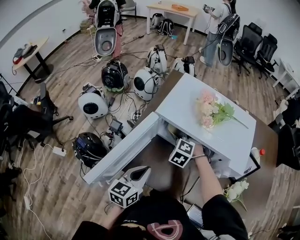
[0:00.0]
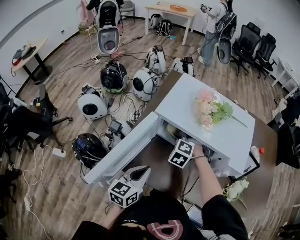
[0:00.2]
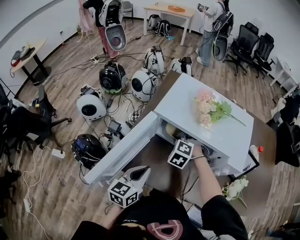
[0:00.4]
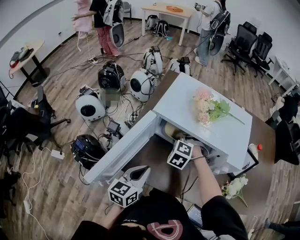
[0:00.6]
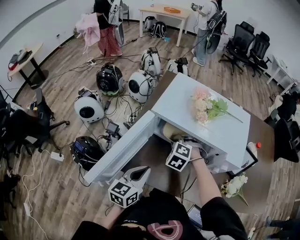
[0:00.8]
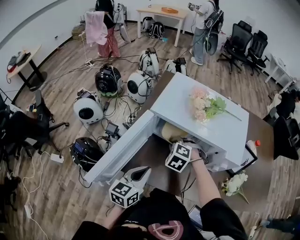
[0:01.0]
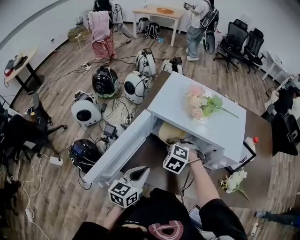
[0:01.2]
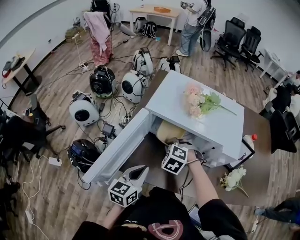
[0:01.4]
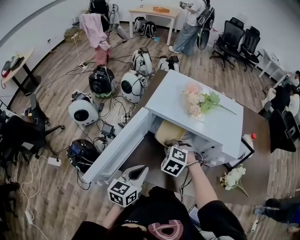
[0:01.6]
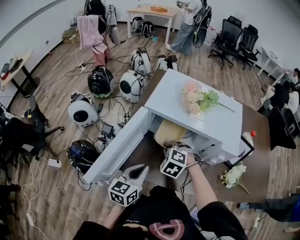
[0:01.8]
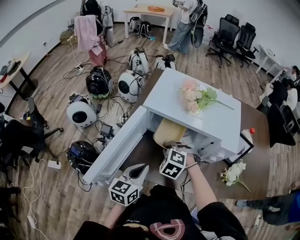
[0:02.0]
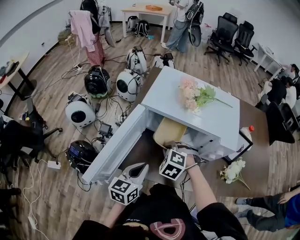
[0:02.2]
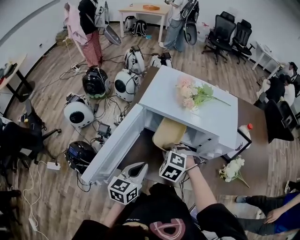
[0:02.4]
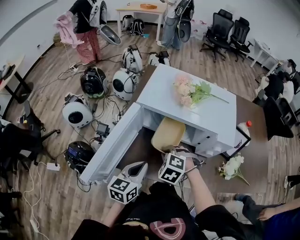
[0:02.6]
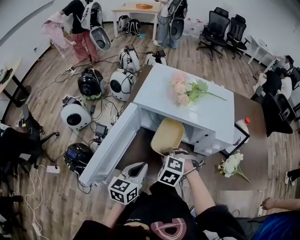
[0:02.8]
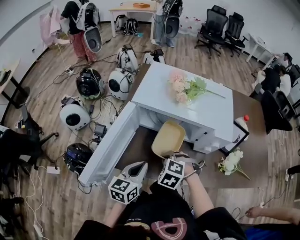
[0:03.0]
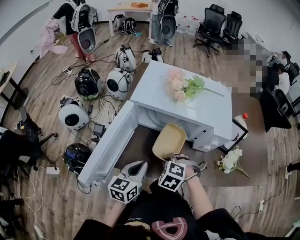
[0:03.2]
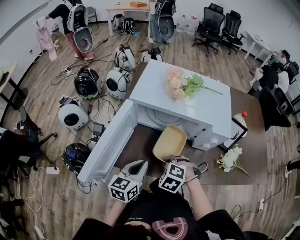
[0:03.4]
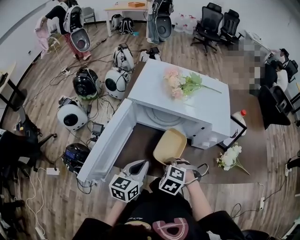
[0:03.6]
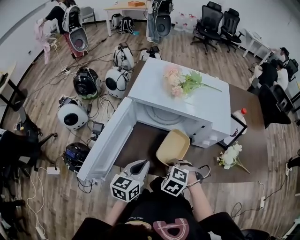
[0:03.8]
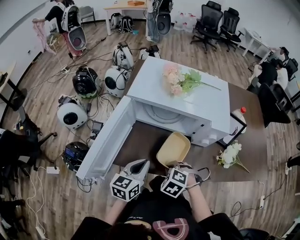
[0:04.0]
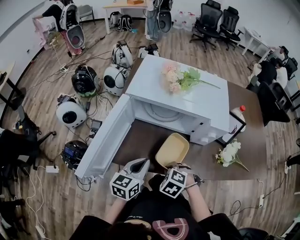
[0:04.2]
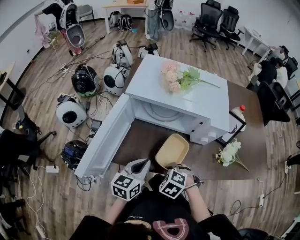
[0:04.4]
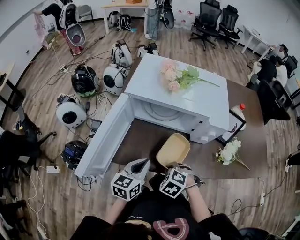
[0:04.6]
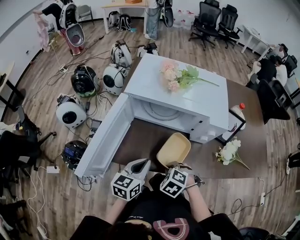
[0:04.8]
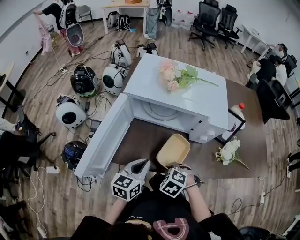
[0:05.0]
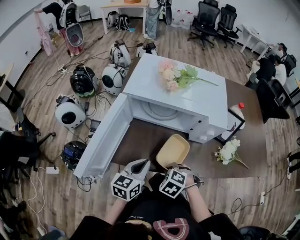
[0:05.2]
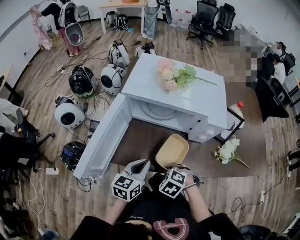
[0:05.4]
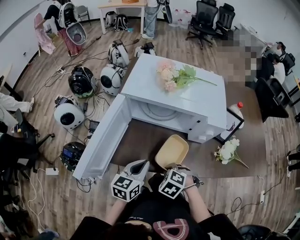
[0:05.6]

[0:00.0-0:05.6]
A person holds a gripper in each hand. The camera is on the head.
0:00.0 to 0:01.4: The right gripper goes about 5 cm backward.
0:01.4 to 0:02.8: The right gripper shifts some 10 cm backward.
0:02.8 to 0:04.2: The right gripper travels backward and to the right by some 10 cm.
0:04.2 to 0:05.6: There are only small adjustments of the grippers.

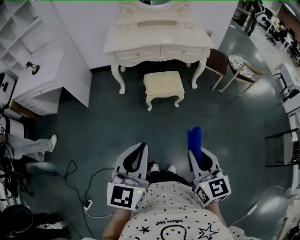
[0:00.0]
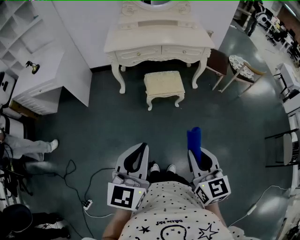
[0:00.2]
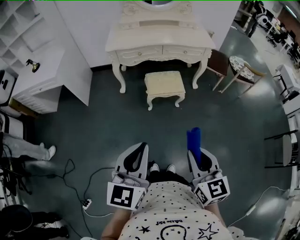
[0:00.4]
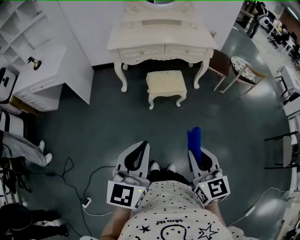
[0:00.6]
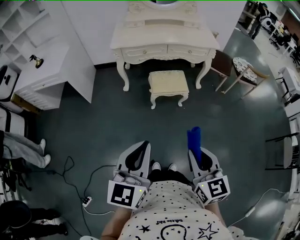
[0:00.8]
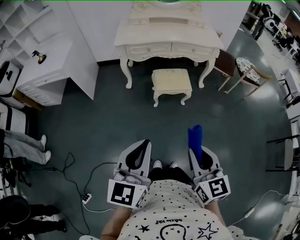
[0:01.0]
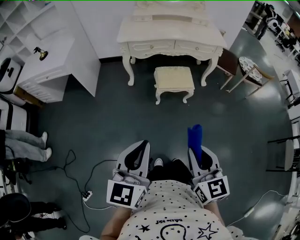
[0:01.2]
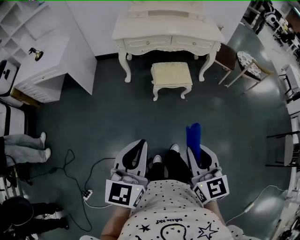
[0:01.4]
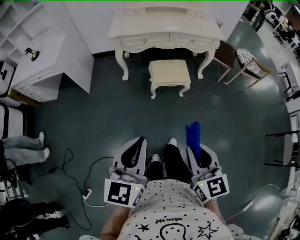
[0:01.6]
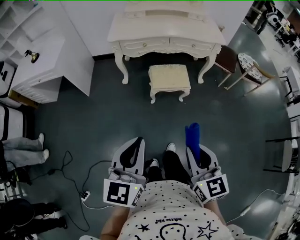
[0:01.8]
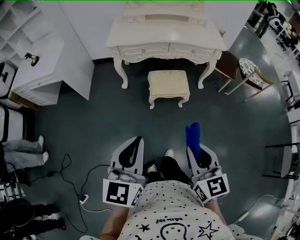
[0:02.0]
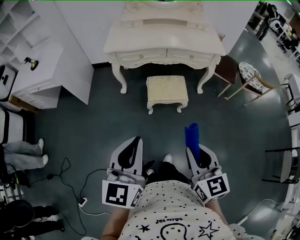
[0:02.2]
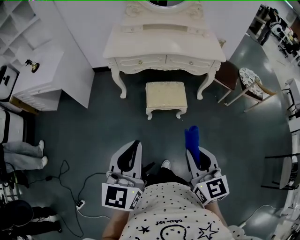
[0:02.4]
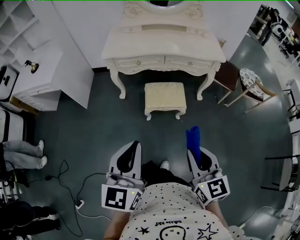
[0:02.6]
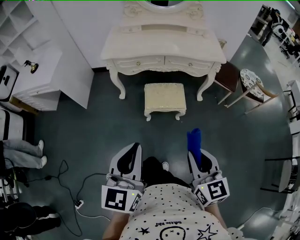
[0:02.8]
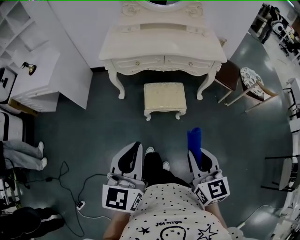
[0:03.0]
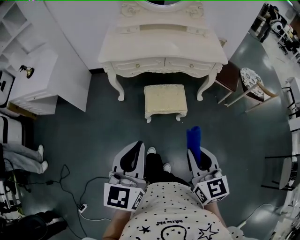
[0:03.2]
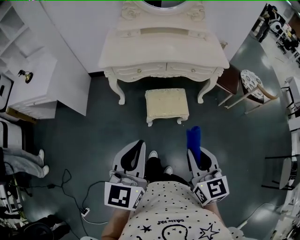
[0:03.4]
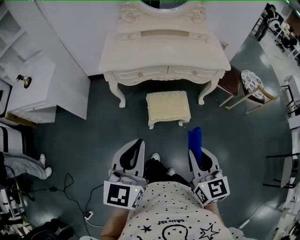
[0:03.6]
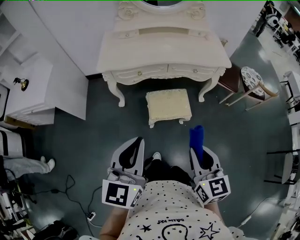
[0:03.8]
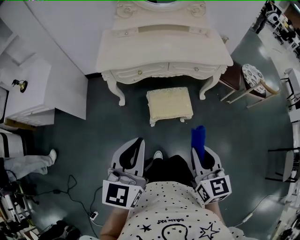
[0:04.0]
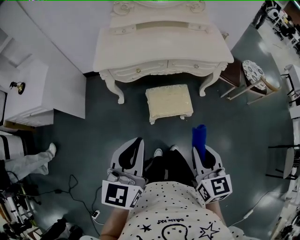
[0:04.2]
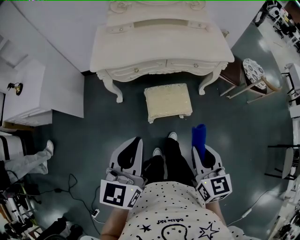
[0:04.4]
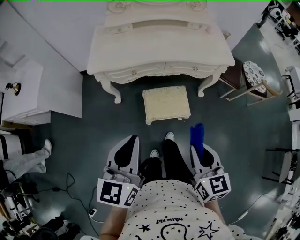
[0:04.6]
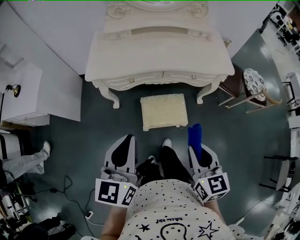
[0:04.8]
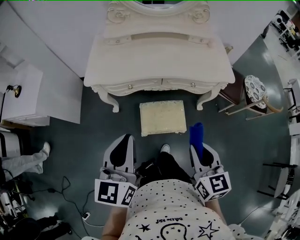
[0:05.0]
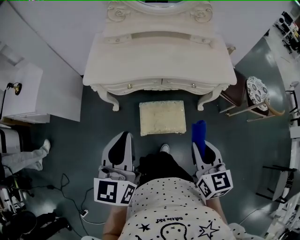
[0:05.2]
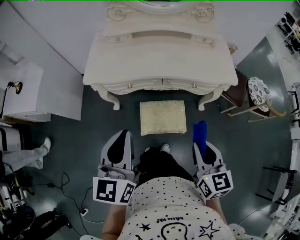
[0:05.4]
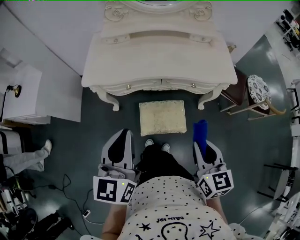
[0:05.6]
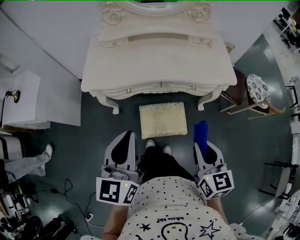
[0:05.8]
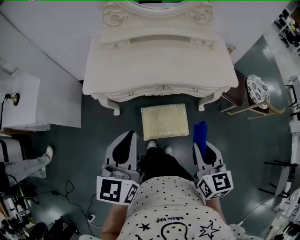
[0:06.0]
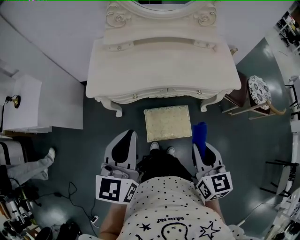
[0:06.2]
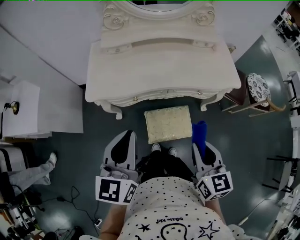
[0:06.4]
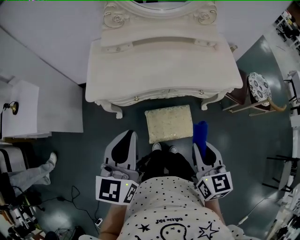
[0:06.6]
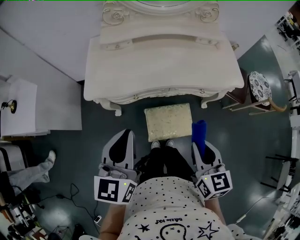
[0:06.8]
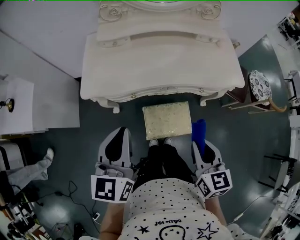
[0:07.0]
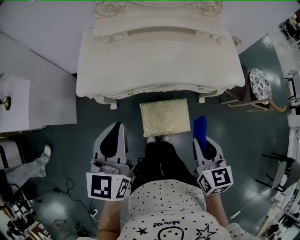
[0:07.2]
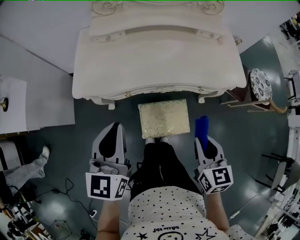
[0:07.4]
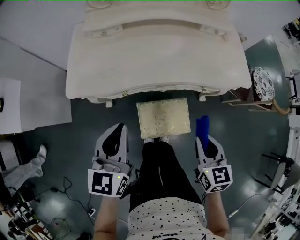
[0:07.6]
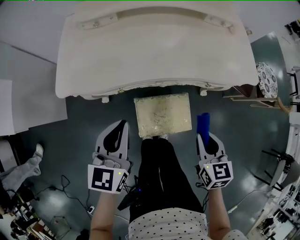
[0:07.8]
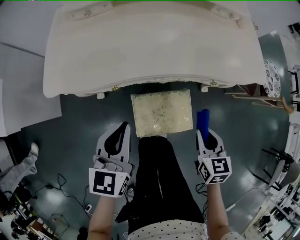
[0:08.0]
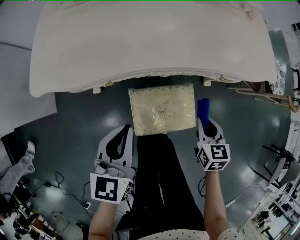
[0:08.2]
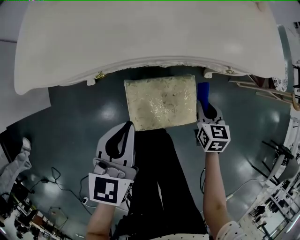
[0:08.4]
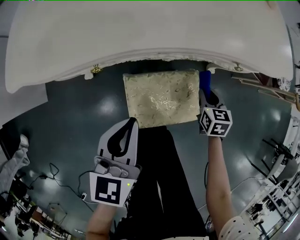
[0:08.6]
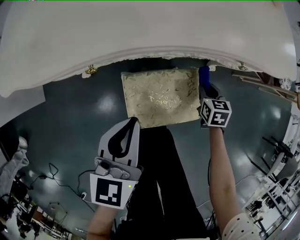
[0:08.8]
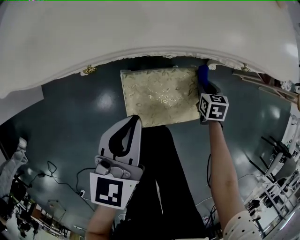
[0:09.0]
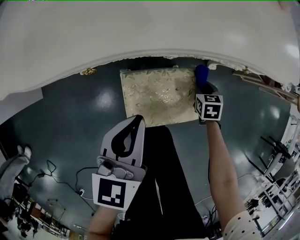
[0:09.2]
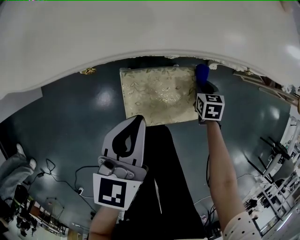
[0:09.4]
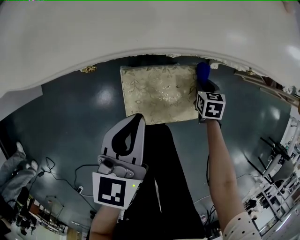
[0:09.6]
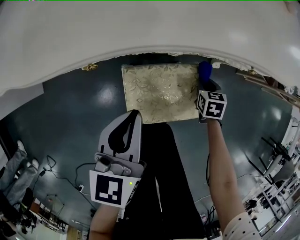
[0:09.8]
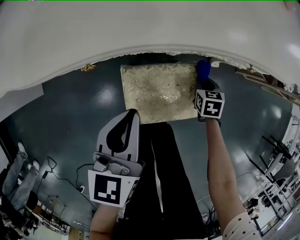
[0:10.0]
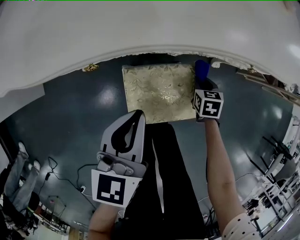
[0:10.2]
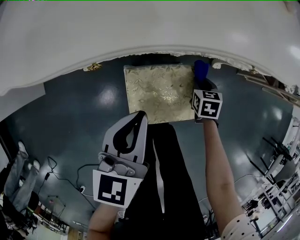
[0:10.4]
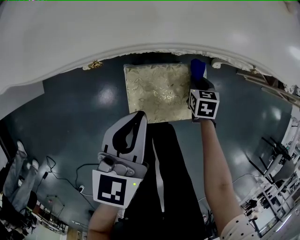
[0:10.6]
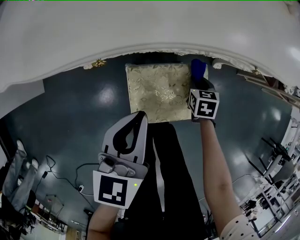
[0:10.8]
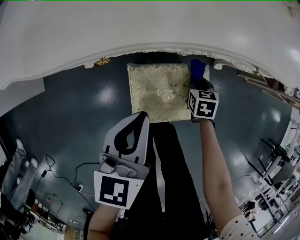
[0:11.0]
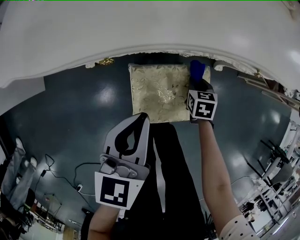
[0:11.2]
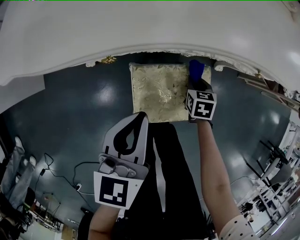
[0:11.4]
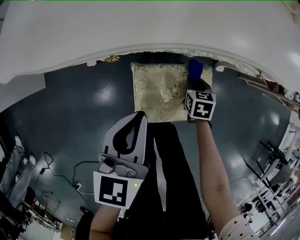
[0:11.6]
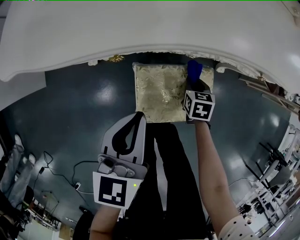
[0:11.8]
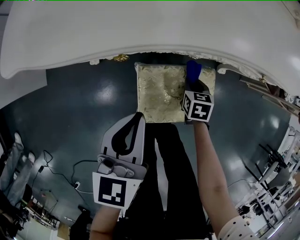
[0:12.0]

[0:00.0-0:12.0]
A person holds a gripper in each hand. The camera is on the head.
0:01.6 to 0:03.0: The grippers both shift forward and to the right by about 20 cm.
0:03.0 to 0:04.4: The two grippers go about 15 cm forward.
0:04.4 to 0:06.0: Both grippers travel together forward, some 20 cm.
0:06.0 to 0:07.6: The grippers both shift downward and forward by some 15 cm.
0:07.6 to 0:09.0: The right gripper shifts about 40 cm downward, and changes its angle by about 30 degrees. Meanwhile the left gripper goes about 25 cm downward.
0:09.0 to 0:10.4: The grippers move only a little.
0:10.4 to 0:12.0: The right gripper moves to the left, approximately 10 cm, while the left gripper goes about 5 cm to the left.

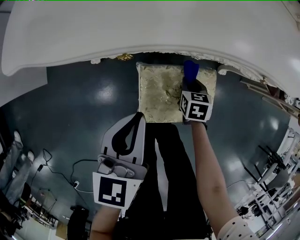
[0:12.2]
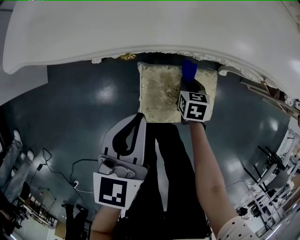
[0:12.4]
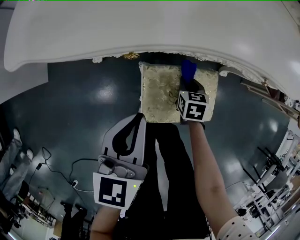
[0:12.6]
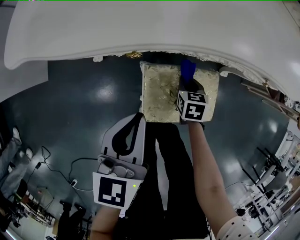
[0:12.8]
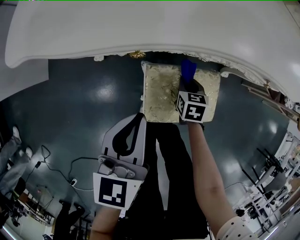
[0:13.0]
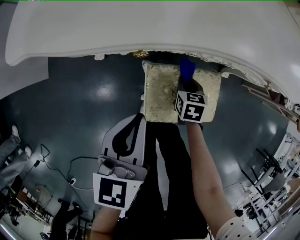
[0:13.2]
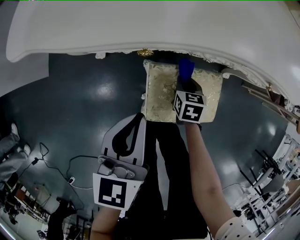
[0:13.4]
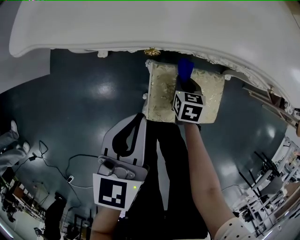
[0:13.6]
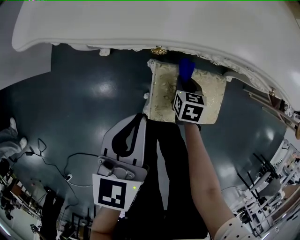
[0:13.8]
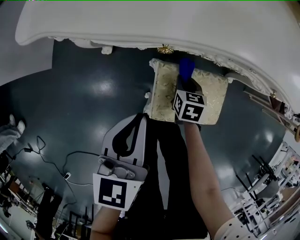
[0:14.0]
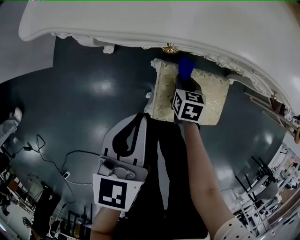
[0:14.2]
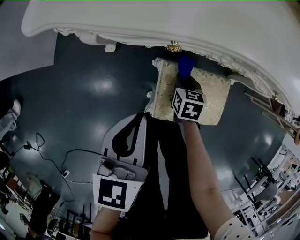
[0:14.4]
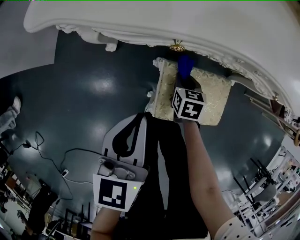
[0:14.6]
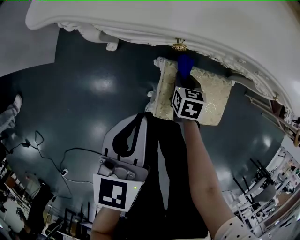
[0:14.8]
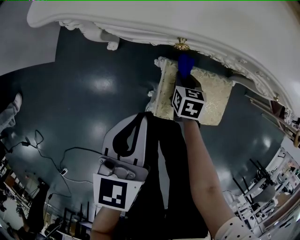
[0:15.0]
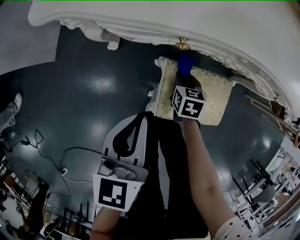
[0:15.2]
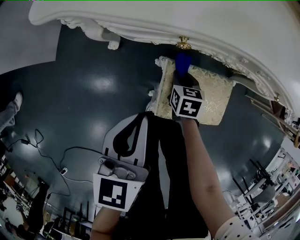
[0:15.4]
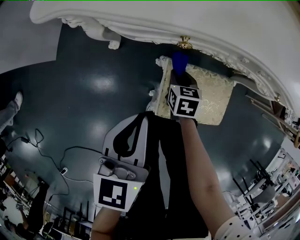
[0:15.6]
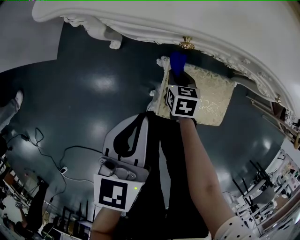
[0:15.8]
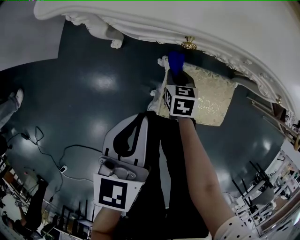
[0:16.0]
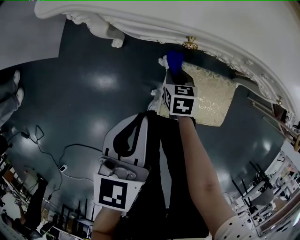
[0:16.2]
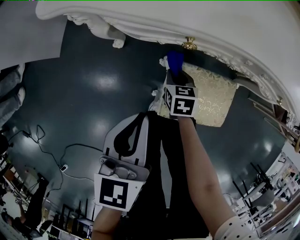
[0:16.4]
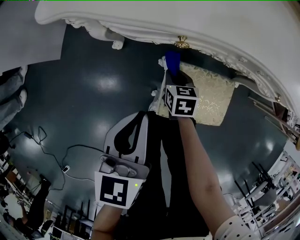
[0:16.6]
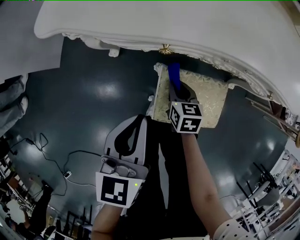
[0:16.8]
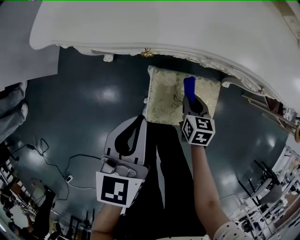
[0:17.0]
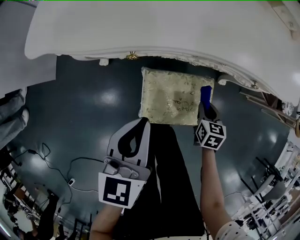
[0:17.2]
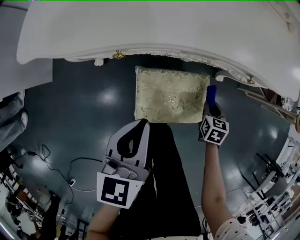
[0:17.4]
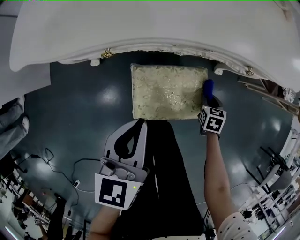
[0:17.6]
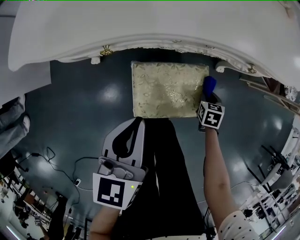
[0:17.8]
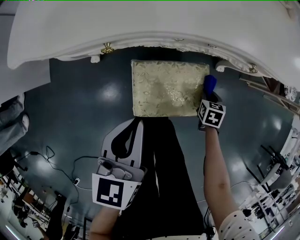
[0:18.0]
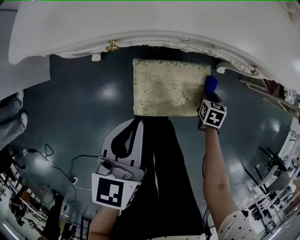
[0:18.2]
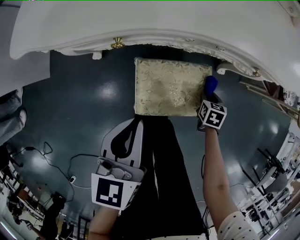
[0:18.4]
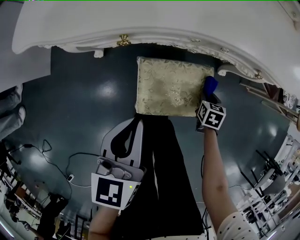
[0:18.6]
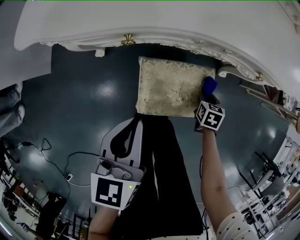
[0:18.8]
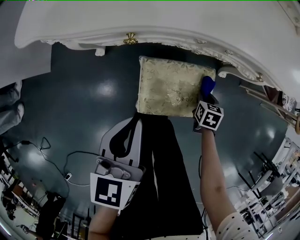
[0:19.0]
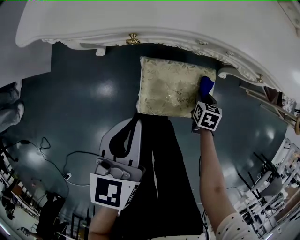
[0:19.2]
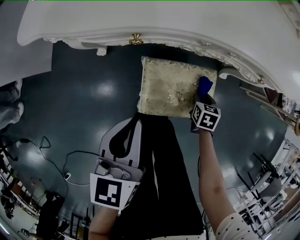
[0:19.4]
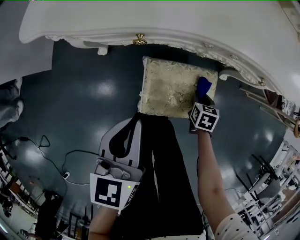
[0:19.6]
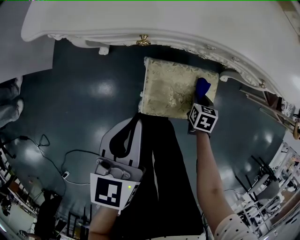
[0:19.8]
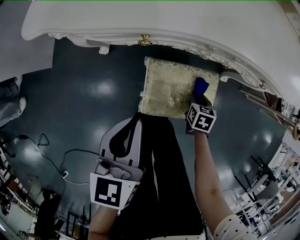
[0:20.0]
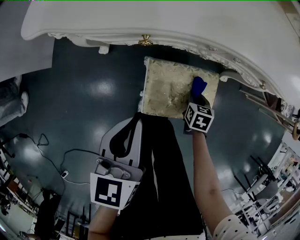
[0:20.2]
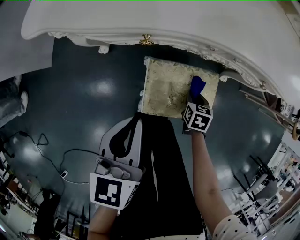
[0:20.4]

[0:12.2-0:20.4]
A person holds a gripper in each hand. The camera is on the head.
0:12.2 to 0:13.8: The left gripper shifts by some 5 cm, while the right gripper is displaced to the left by roughly 10 cm.
0:13.8 to 0:15.4: The right gripper shifts about 5 cm to the left.
0:15.4 to 0:17.2: The right gripper travels to the right by about 20 cm; the left gripper goes some 10 cm to the right.
0:17.2 to 0:18.8: The right gripper shifts about 5 cm downward.
0:18.8 to 0:20.4: The right gripper heads to the left, covering approximately 10 cm.
